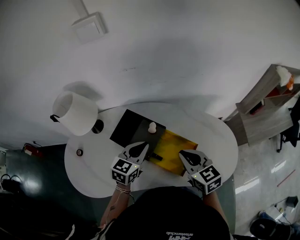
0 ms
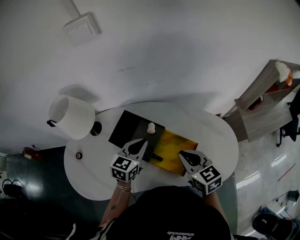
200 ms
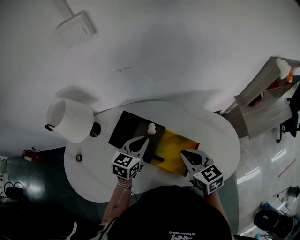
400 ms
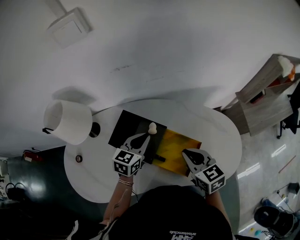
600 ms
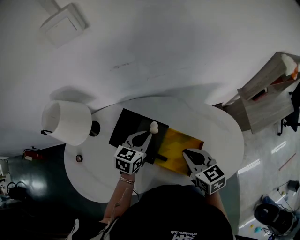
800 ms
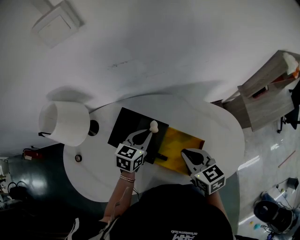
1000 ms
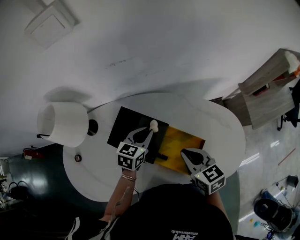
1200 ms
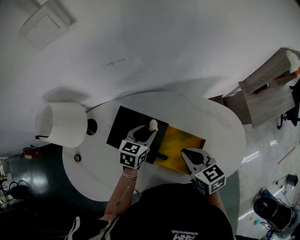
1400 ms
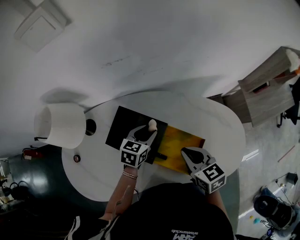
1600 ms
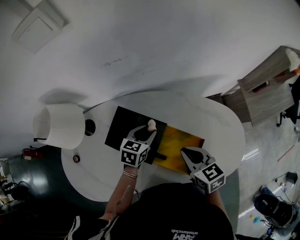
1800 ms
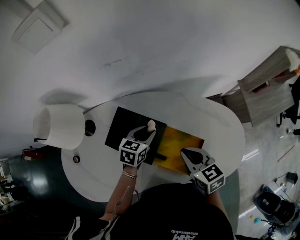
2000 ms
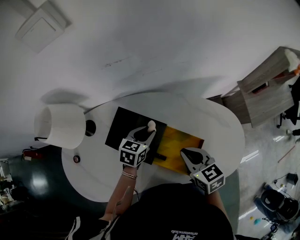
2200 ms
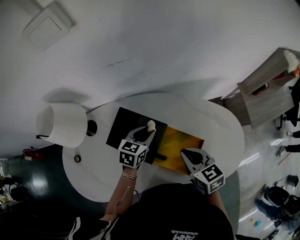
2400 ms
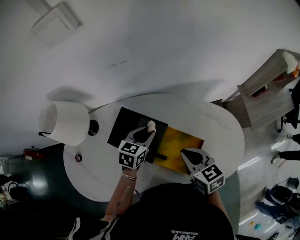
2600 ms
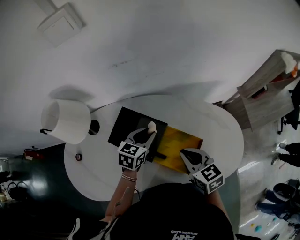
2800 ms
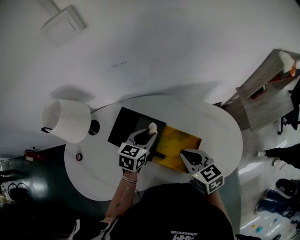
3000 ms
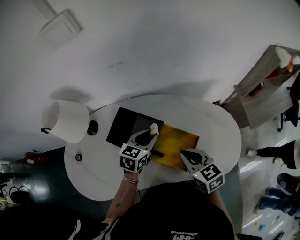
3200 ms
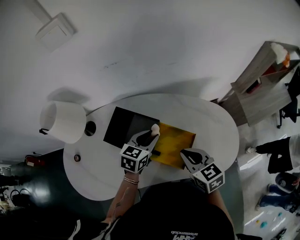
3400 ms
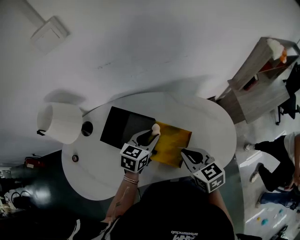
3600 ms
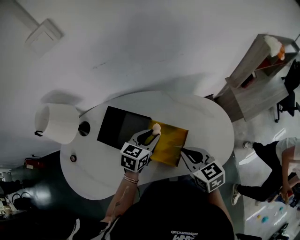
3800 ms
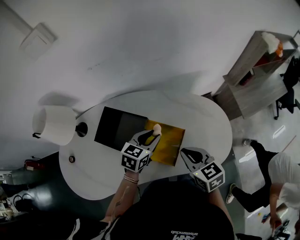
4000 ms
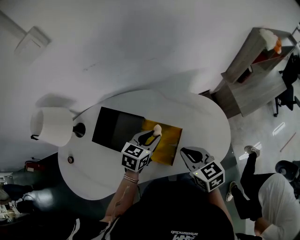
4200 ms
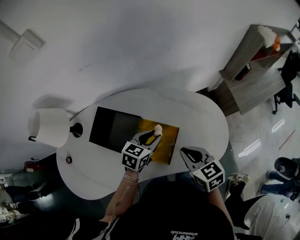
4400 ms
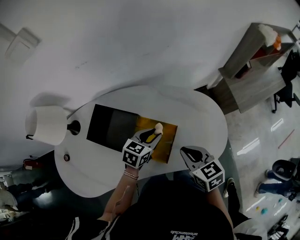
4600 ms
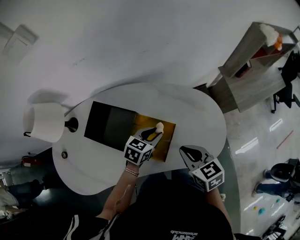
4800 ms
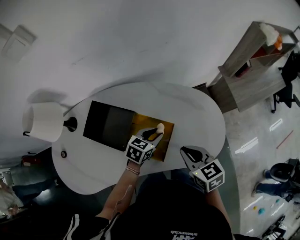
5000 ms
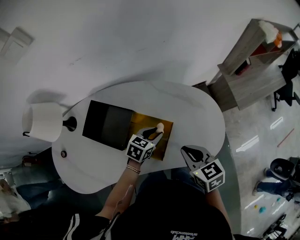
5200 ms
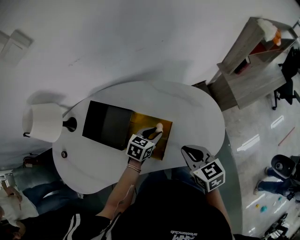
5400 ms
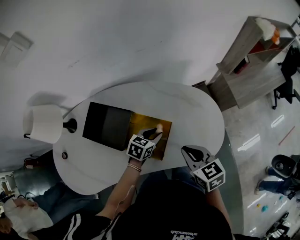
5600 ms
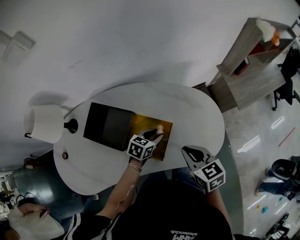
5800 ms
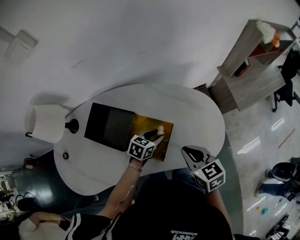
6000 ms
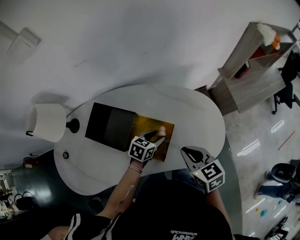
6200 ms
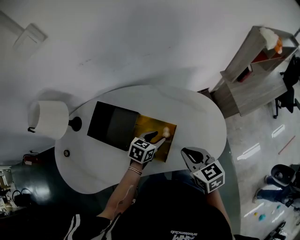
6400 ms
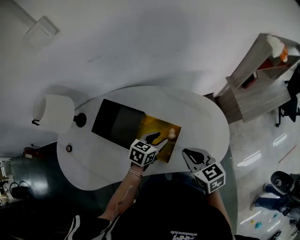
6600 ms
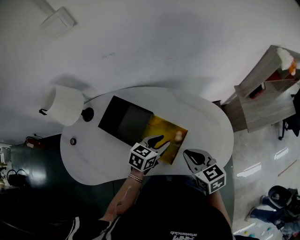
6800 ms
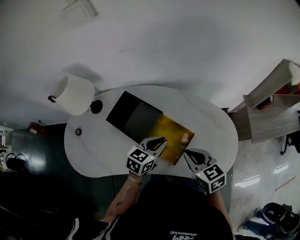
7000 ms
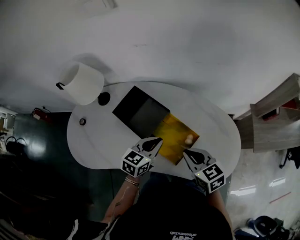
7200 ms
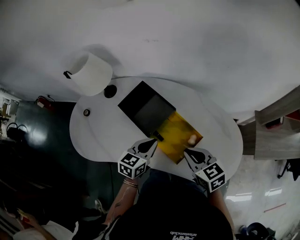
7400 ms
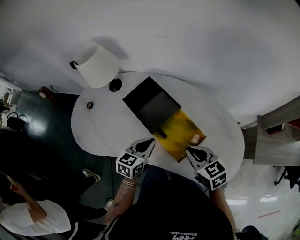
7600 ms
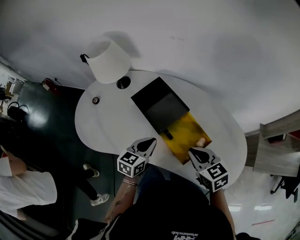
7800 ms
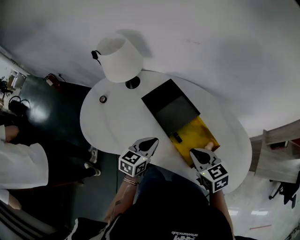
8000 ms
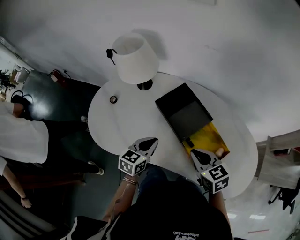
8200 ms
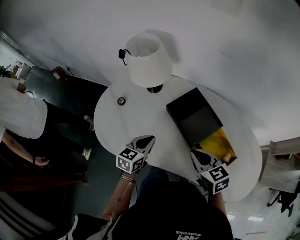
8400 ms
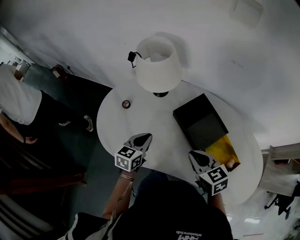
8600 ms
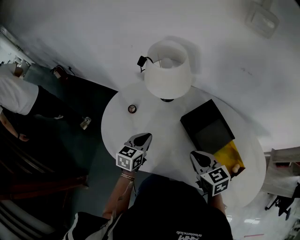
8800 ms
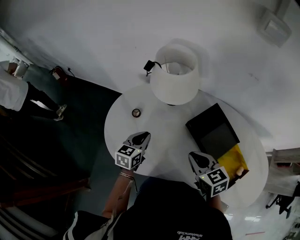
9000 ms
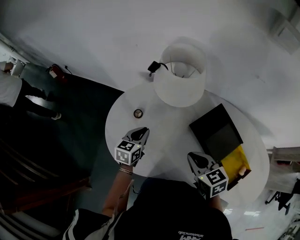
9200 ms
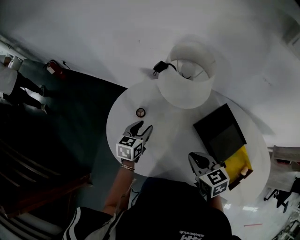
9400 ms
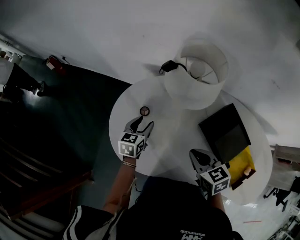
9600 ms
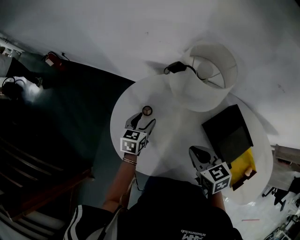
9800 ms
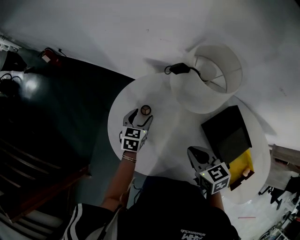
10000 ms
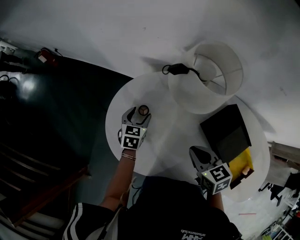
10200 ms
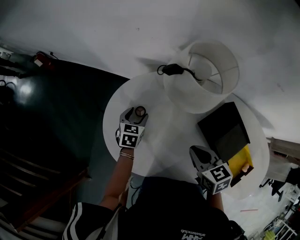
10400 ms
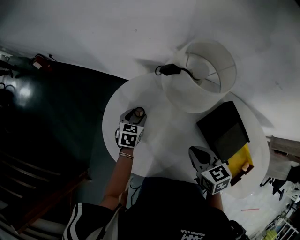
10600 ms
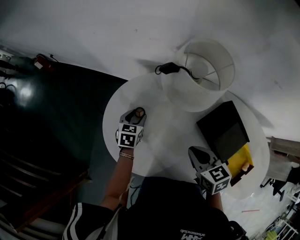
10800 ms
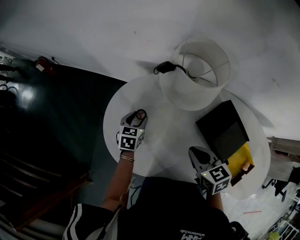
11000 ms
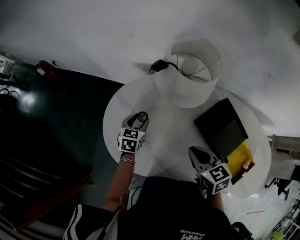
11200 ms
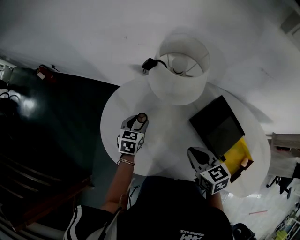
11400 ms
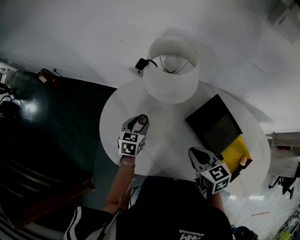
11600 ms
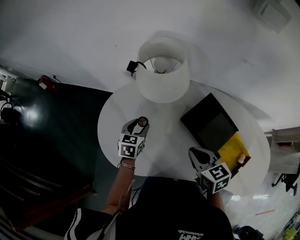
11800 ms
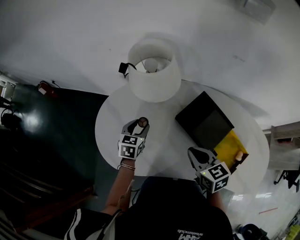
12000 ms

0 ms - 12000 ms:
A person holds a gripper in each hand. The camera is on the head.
0 ms - 1600 ms: The left gripper heads downward and forward, covering approximately 15 cm, and opens its fingers, while the right gripper goes some 5 cm downward.
1600 ms - 3000 ms: The left gripper shifts roughly 5 cm upward.
3000 ms - 4400 ms: Both grippers move to the right, some 10 cm.
4400 ms - 6000 ms: The left gripper travels downward by roughly 10 cm.
6000 ms - 7600 ms: The right gripper moves some 10 cm, and rotates roughly 30 degrees. The left gripper changes place by approximately 20 cm, swivels roughly 40 degrees, and closes its fingers.
7600 ms - 9000 ms: The two grippers go some 35 cm to the left and forward.
9000 ms - 10400 ms: The left gripper is displaced forward, downward and to the left by approximately 20 cm, and opens up. Meanwhile the right gripper moves forward and to the left, approximately 10 cm.
10400 ms - 12000 ms: The left gripper heads to the right, upward and backward, covering about 15 cm. Meanwhile the right gripper shifts roughly 10 cm to the right and backward.

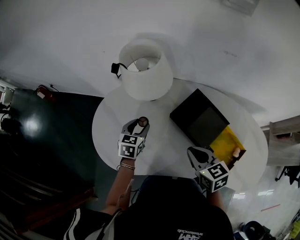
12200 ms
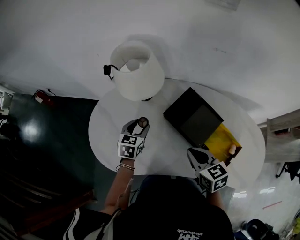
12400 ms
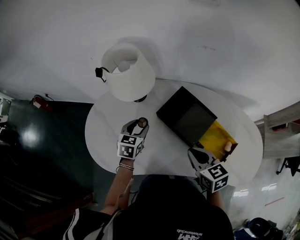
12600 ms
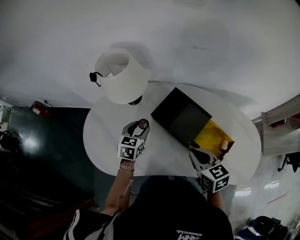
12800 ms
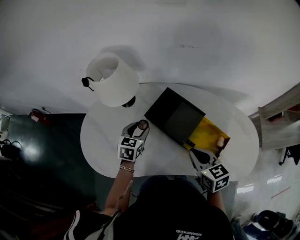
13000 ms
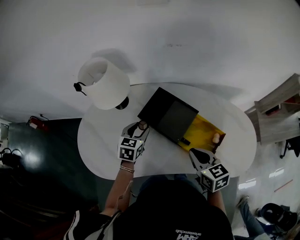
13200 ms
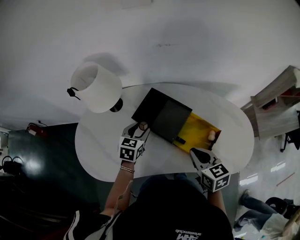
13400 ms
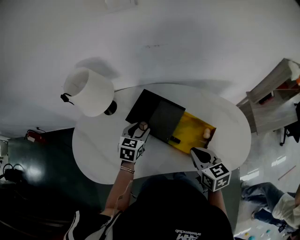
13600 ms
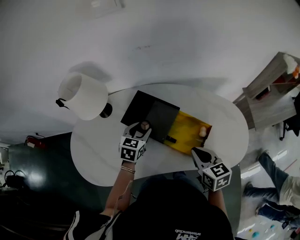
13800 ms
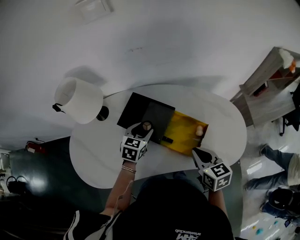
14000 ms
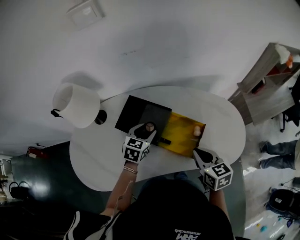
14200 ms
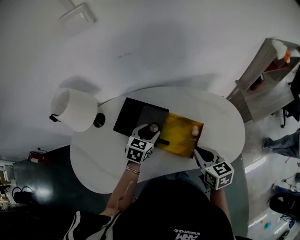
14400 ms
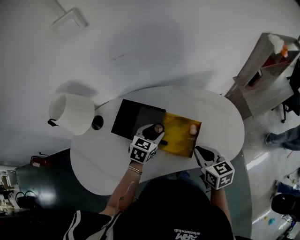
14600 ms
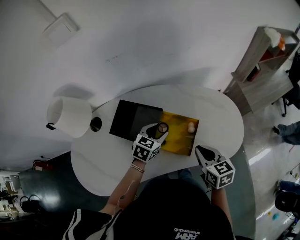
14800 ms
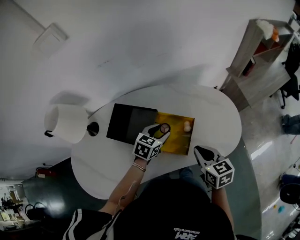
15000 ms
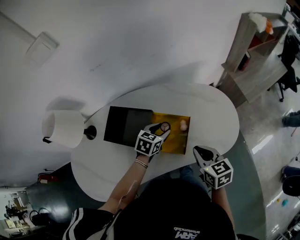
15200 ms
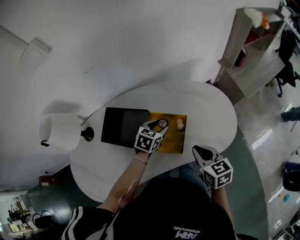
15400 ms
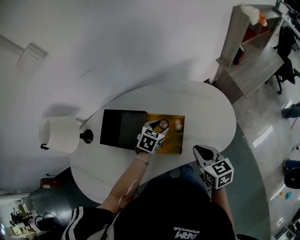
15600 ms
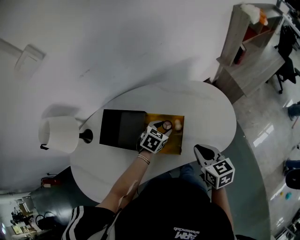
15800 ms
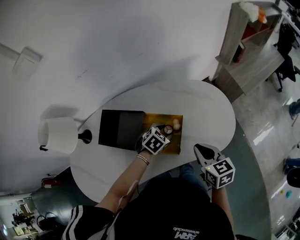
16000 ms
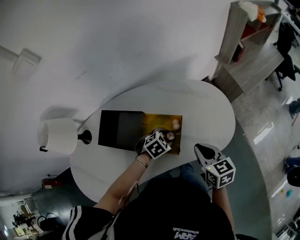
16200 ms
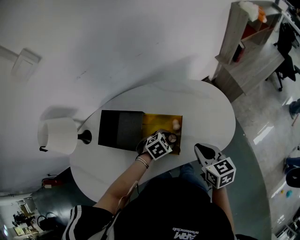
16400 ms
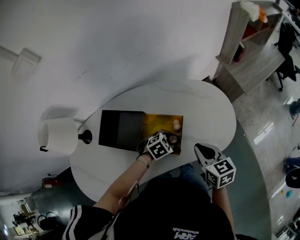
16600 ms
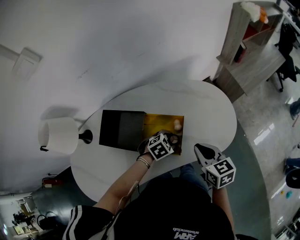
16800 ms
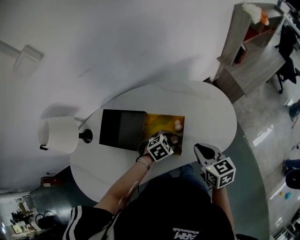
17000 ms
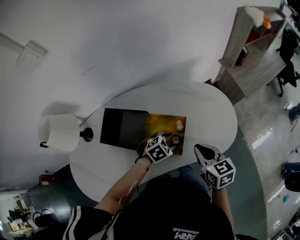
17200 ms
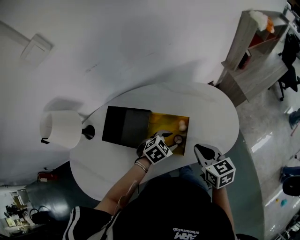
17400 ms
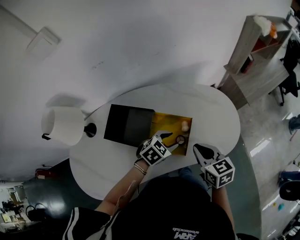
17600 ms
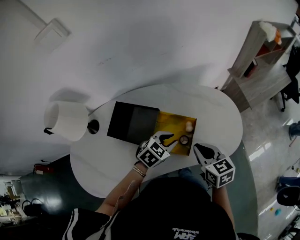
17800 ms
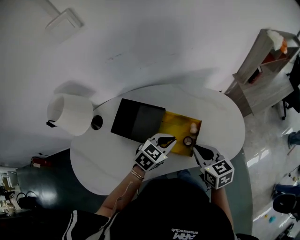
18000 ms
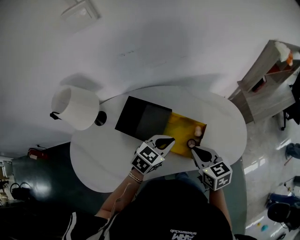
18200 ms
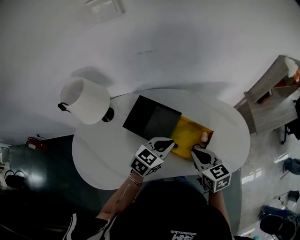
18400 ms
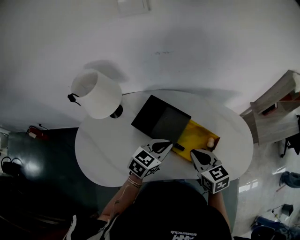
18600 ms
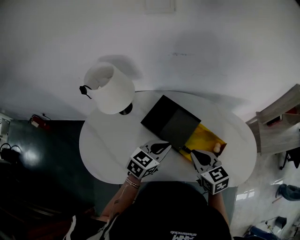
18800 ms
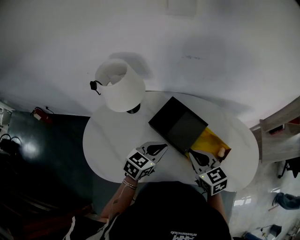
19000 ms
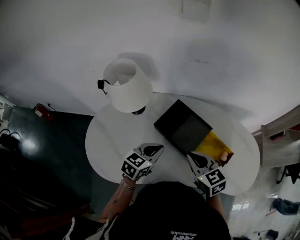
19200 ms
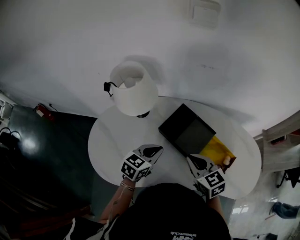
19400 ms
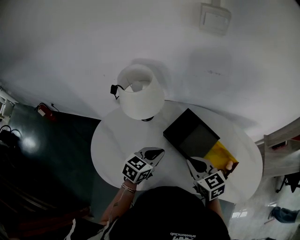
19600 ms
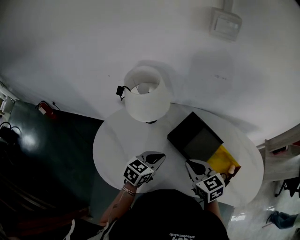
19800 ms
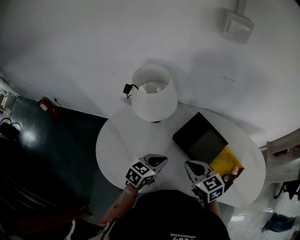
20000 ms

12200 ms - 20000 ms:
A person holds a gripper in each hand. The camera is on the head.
12200 ms - 13800 ms: The right gripper heads to the right and backward, covering roughly 25 cm, and rotates approximately 20 degrees. The left gripper heads to the right, covering roughly 25 cm, and turns by approximately 20 degrees.
13800 ms - 15400 ms: The right gripper is displaced to the right by about 10 cm. The left gripper goes approximately 20 cm to the right, and turns by about 30 degrees.
15400 ms - 16800 ms: The left gripper shifts some 10 cm to the right, backward and downward, and rotates about 40 degrees.
16800 ms - 18400 ms: The right gripper ends up about 15 cm from where it was, and turns by approximately 20 degrees. Meanwhile the left gripper heads upward, covering approximately 15 cm, tips its fingers upward by roughly 30 degrees, and closes.
18400 ms - 20000 ms: Both grippers move to the left, about 25 cm. The right gripper turns by approximately 30 degrees; the left gripper swivels roughly 20 degrees.

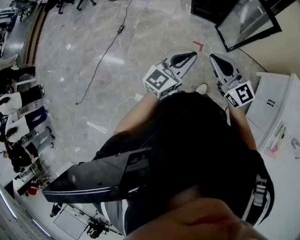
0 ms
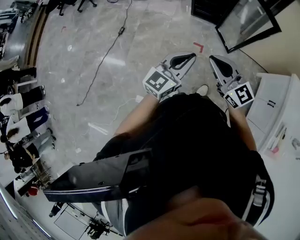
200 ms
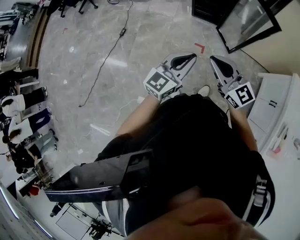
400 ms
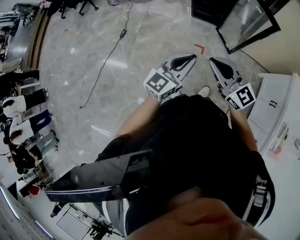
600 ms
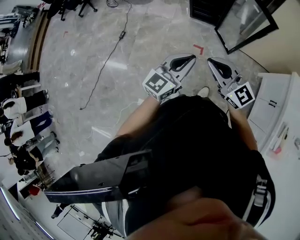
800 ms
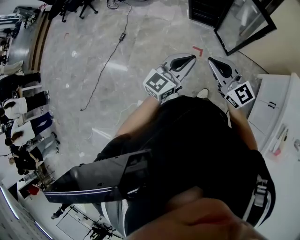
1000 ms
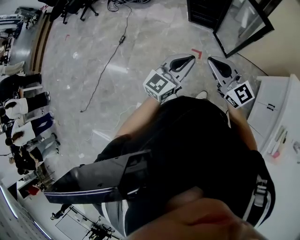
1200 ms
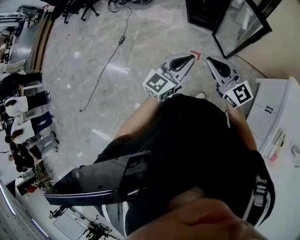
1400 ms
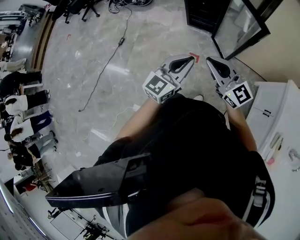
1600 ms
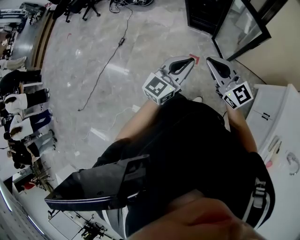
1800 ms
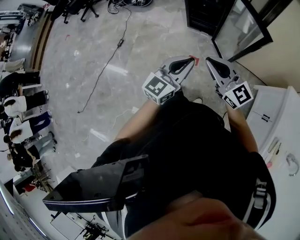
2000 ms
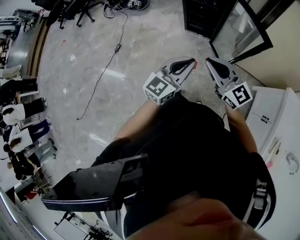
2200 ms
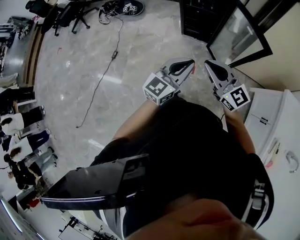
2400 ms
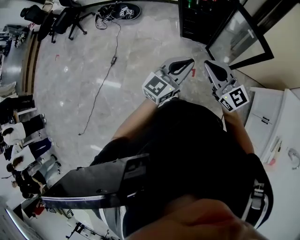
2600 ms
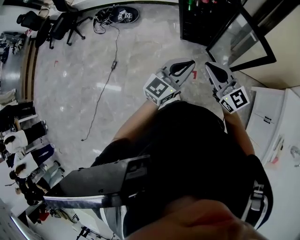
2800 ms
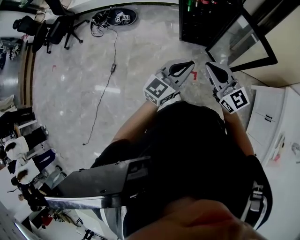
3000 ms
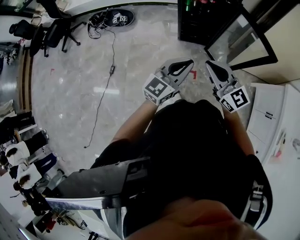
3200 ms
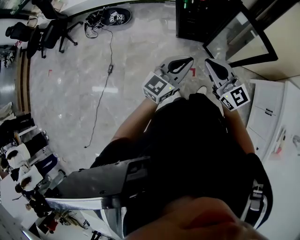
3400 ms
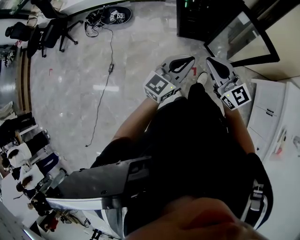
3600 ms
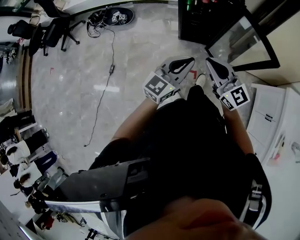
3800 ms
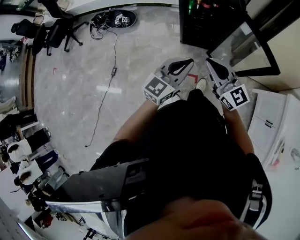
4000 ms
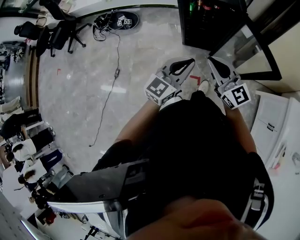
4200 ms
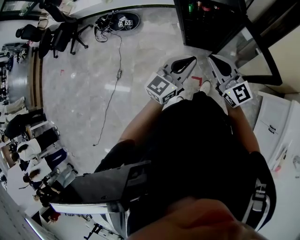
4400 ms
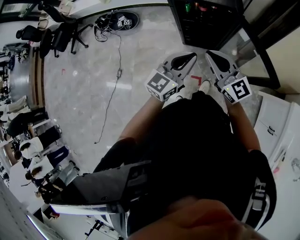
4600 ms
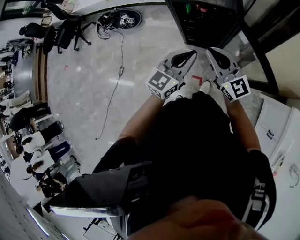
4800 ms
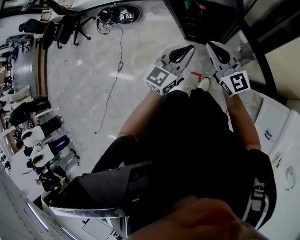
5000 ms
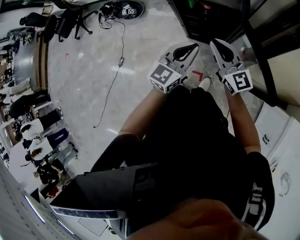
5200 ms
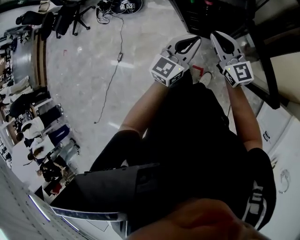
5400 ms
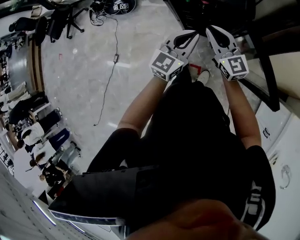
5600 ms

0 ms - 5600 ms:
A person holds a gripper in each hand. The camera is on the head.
0 ms - 1400 ms: Both grippers travel together to the right, approximately 10 cm.
1400 ms - 2800 ms: The grippers both shift forward by some 20 cm.
2800 ms - 4200 ms: The grippers both shift forward by approximately 15 cm.
4200 ms - 5600 ms: The right gripper shifts some 25 cm forward and downward. Meanwhile the left gripper goes roughly 25 cm forward and to the right.
